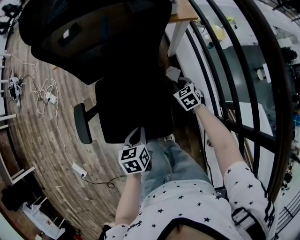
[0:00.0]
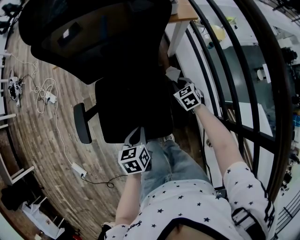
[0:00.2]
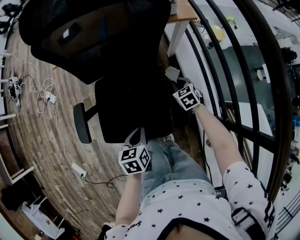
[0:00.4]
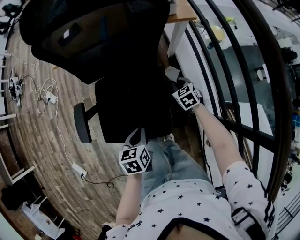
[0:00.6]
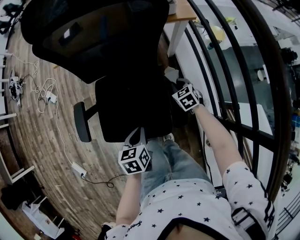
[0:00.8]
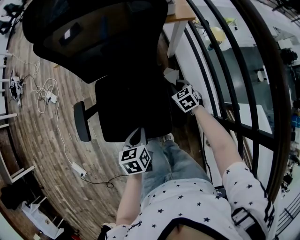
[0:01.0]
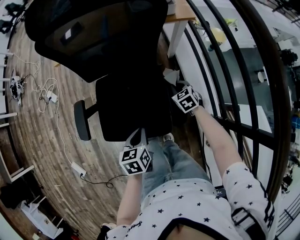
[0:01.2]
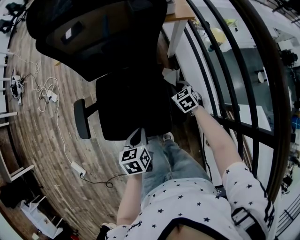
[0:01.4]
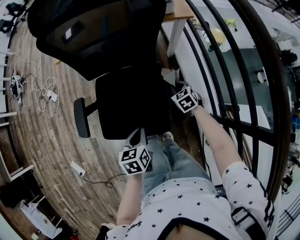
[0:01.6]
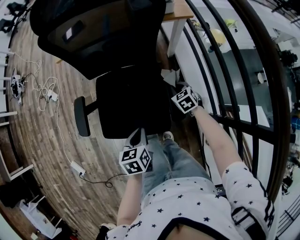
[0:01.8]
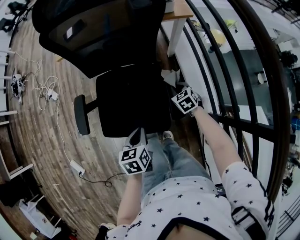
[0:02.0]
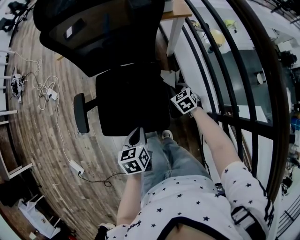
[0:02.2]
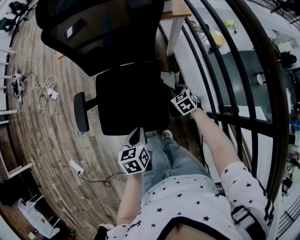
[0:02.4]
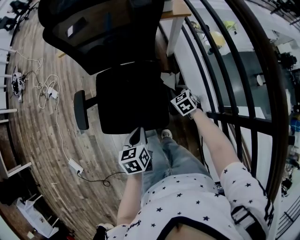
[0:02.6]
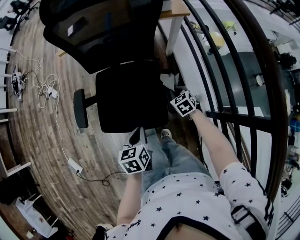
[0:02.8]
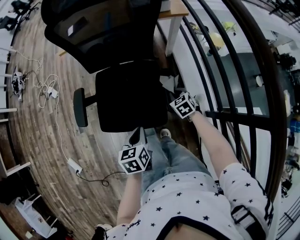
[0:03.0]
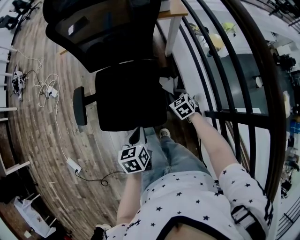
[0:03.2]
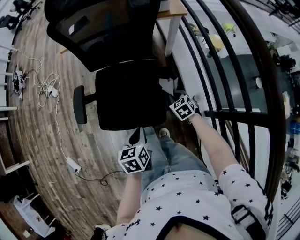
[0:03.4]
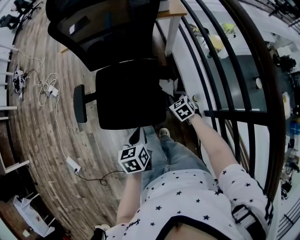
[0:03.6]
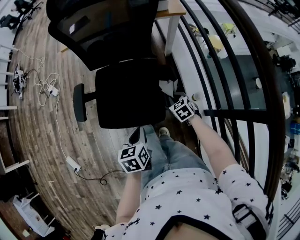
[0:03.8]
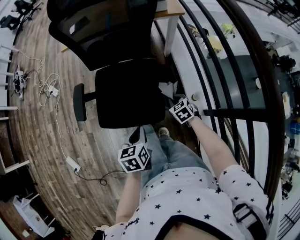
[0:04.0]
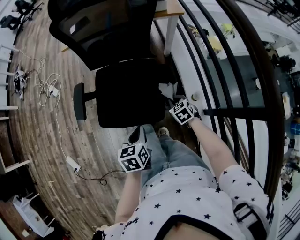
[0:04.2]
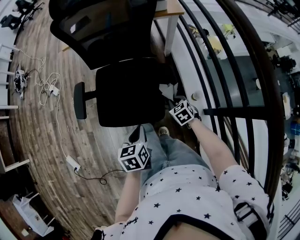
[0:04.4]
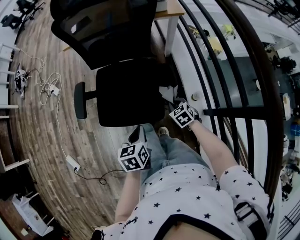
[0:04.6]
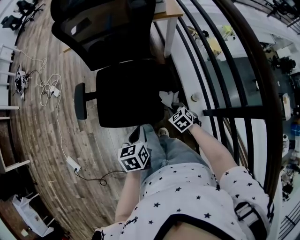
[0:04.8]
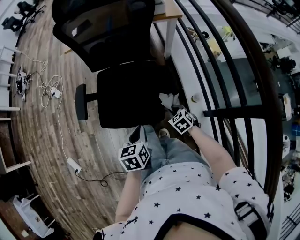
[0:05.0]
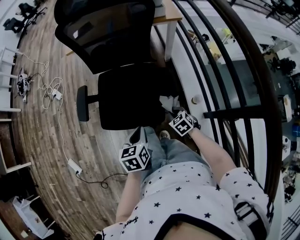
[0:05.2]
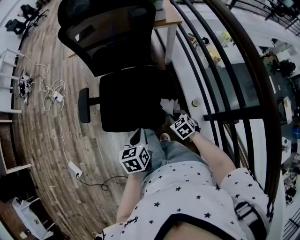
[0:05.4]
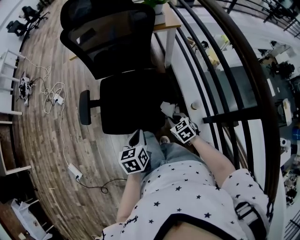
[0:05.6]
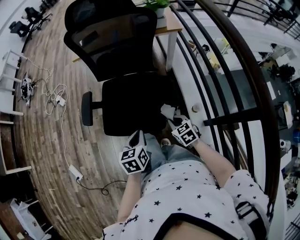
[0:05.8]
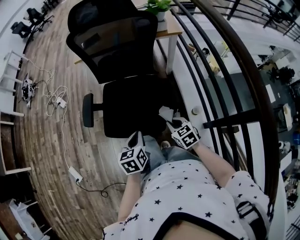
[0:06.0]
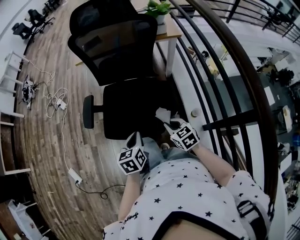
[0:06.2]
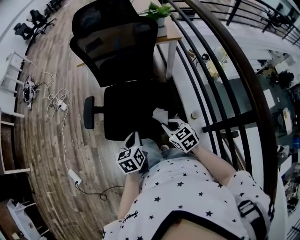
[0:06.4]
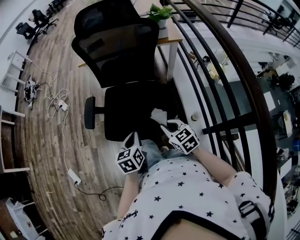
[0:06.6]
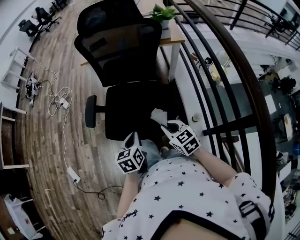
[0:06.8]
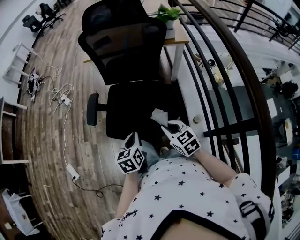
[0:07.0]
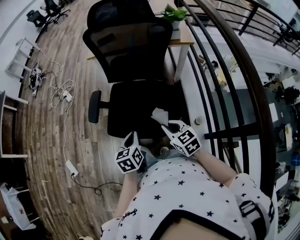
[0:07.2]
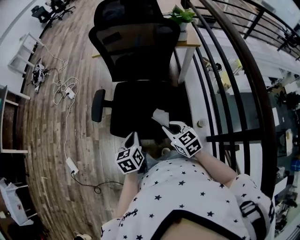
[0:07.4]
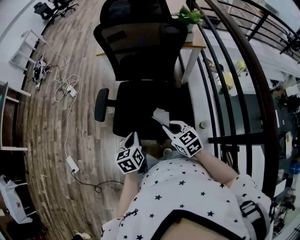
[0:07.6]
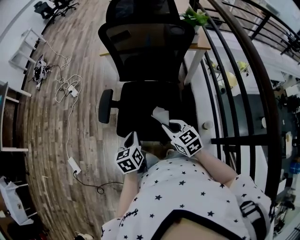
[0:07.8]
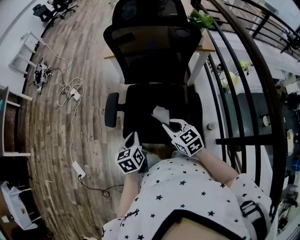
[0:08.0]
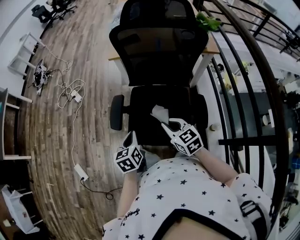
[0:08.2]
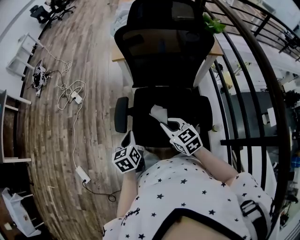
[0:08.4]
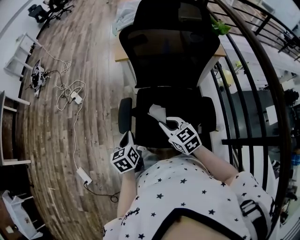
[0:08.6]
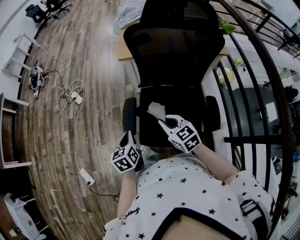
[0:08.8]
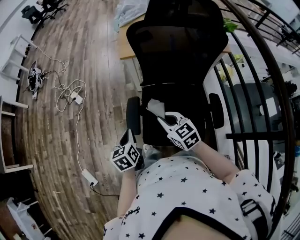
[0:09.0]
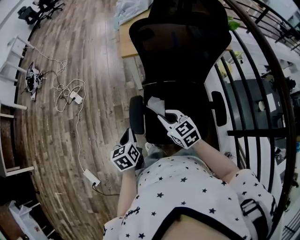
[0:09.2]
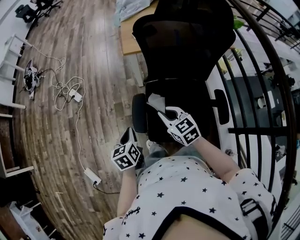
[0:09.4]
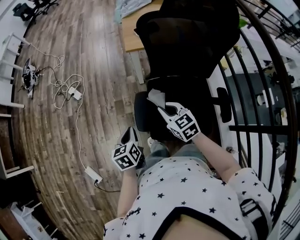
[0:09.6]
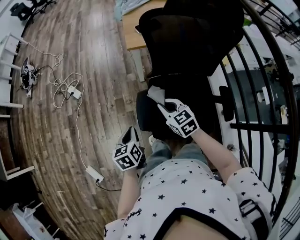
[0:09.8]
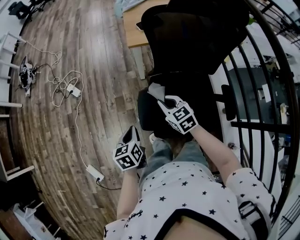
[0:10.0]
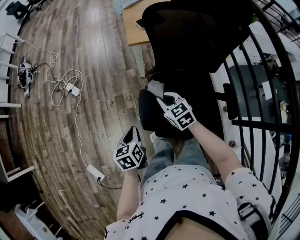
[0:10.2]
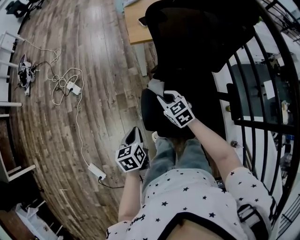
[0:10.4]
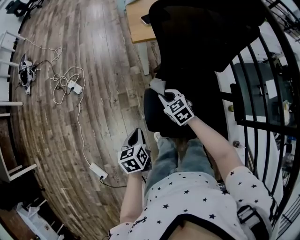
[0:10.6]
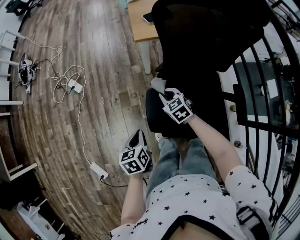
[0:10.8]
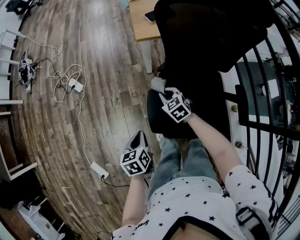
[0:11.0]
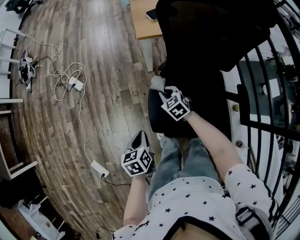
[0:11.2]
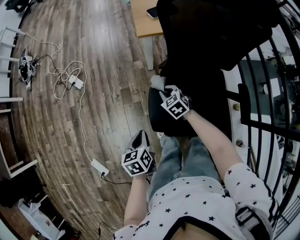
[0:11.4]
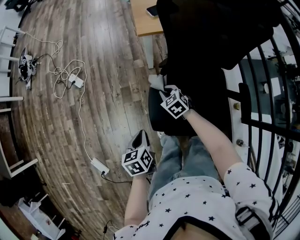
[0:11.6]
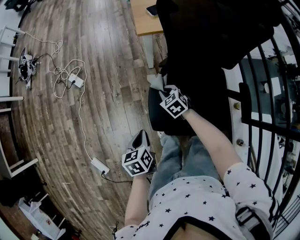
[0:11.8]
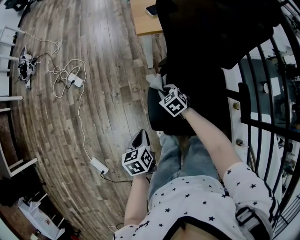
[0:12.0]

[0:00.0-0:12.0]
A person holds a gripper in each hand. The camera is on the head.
0.0 to 1.6 s: There are only small adjustments of the grippers.
1.6 to 3.0 s: The two grippers go roughly 5 cm backward.
3.0 to 4.4 s: The right gripper goes some 10 cm backward.
4.4 to 6.0 s: The right gripper heads upward and backward, covering about 10 cm.
6.0 to 7.6 s: The left gripper moves to the left, approximately 5 cm. Meanwhile the right gripper heads upward and to the left, covering approximately 10 cm.
7.6 to 9.0 s: The right gripper travels forward and to the left by approximately 30 cm. The left gripper moves to the left and forward, approximately 30 cm.
9.0 to 10.4 s: The left gripper travels downward and to the left by some 10 cm. The right gripper shifts approximately 20 cm forward, downward and to the left.
10.4 to 12.0 s: The right gripper is displaced downward by about 10 cm.

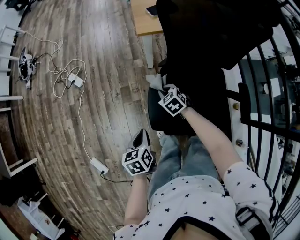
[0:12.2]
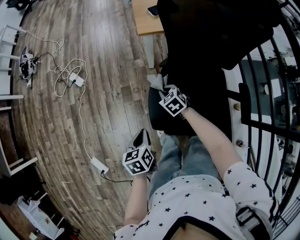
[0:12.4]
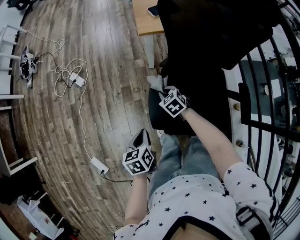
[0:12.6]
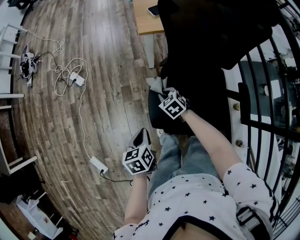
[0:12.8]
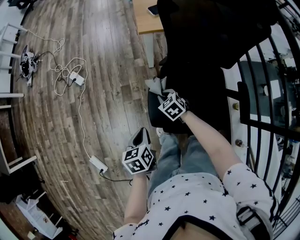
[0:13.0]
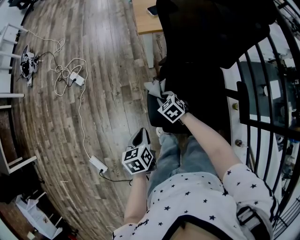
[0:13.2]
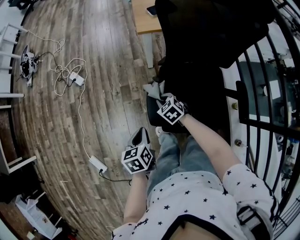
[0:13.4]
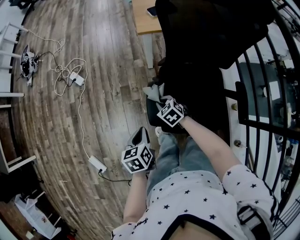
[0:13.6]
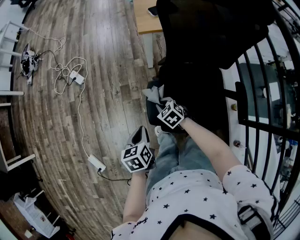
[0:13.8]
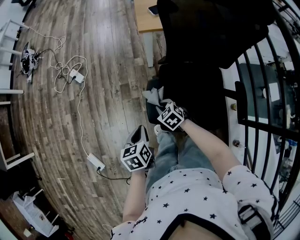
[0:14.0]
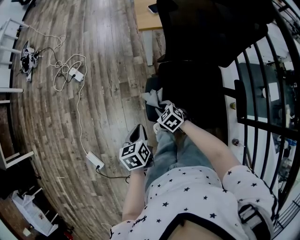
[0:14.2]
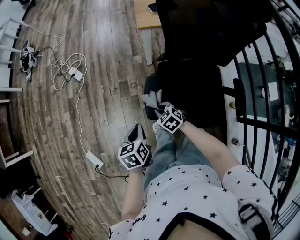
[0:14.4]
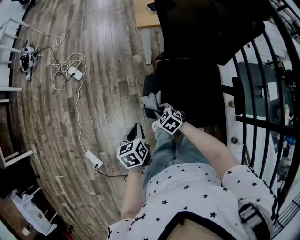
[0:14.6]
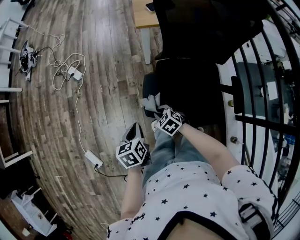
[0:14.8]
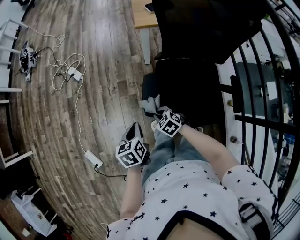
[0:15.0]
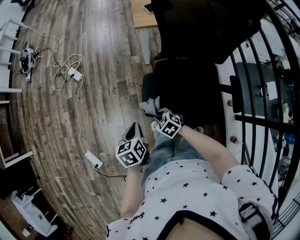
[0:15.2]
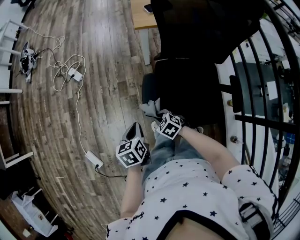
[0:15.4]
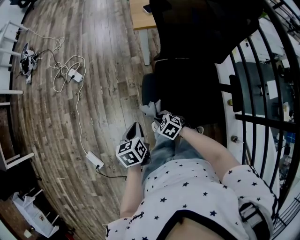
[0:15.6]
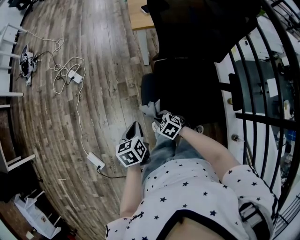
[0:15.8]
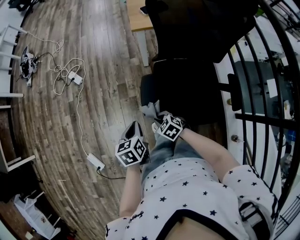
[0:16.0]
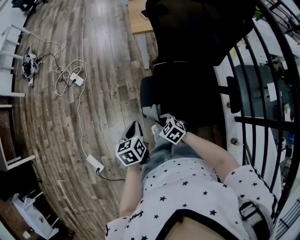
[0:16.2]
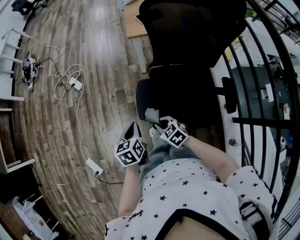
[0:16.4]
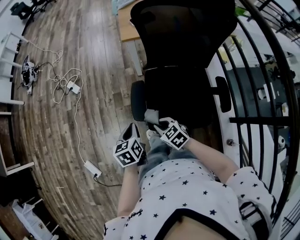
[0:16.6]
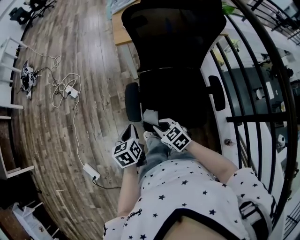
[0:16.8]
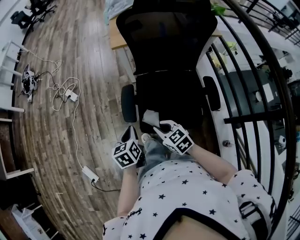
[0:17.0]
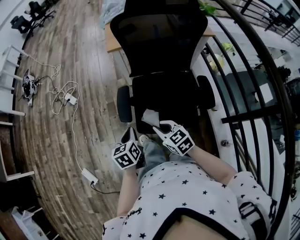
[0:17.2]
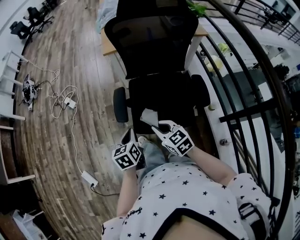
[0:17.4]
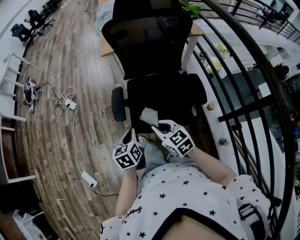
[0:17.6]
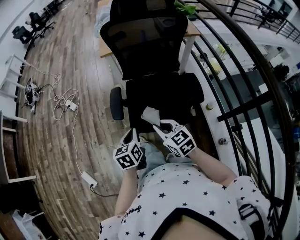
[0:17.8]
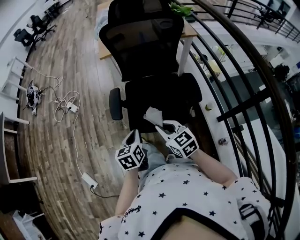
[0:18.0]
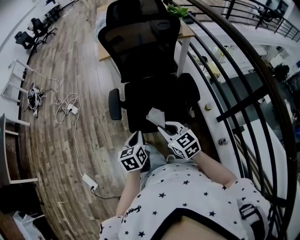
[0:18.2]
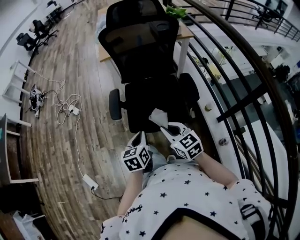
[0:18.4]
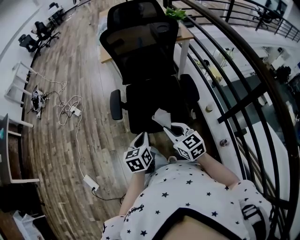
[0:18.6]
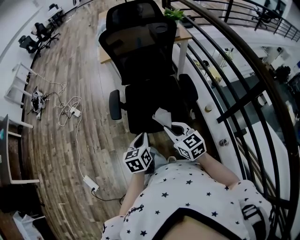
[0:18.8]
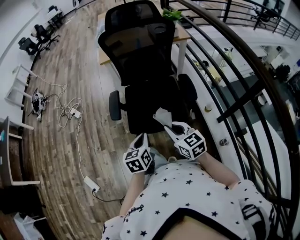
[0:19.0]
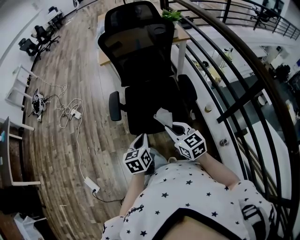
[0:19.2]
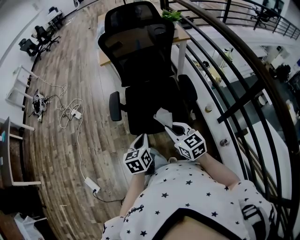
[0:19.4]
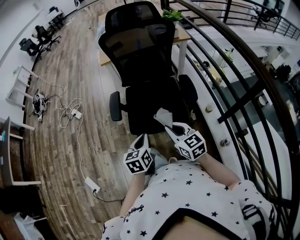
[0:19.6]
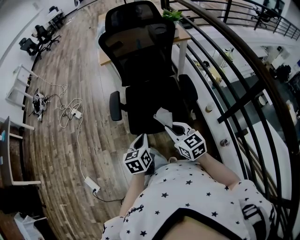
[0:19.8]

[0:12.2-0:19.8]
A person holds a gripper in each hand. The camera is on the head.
12.2 to 13.8 s: The right gripper moves backward, some 10 cm.
13.8 to 15.2 s: The right gripper shifts some 10 cm backward.
15.2 to 16.8 s: The left gripper heads to the right, covering about 5 cm; the right gripper moves upward, backward and to the right, some 15 cm, and swivels some 20 degrees.
16.8 to 18.2 s: The left gripper shifts roughly 20 cm backward and to the right, while the right gripper shifts some 20 cm backward, to the right and upward, and swivels roughly 20 degrees.
18.2 to 19.8 s: The right gripper shifts by about 5 cm, while the left gripper shifts by some 5 cm.

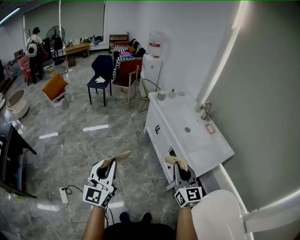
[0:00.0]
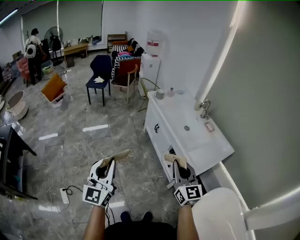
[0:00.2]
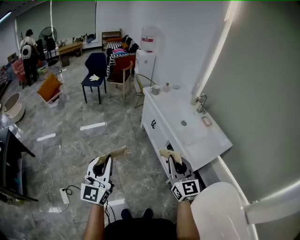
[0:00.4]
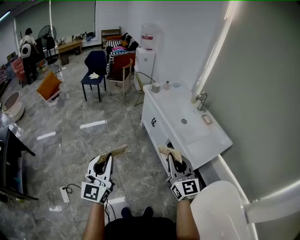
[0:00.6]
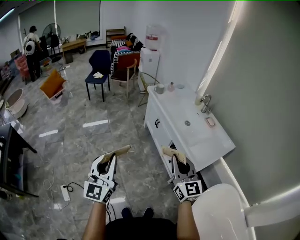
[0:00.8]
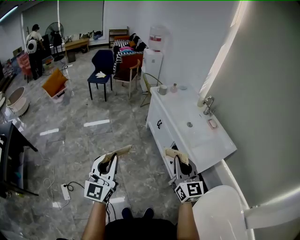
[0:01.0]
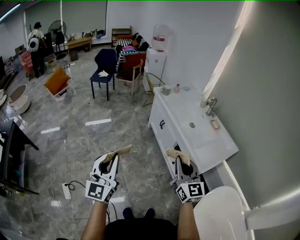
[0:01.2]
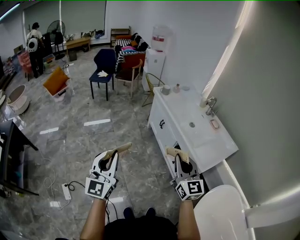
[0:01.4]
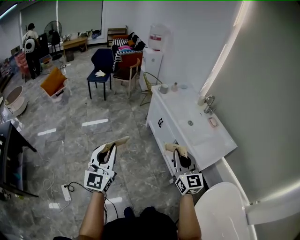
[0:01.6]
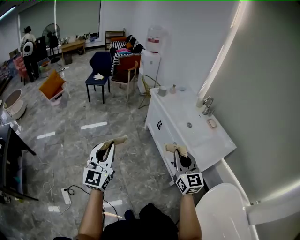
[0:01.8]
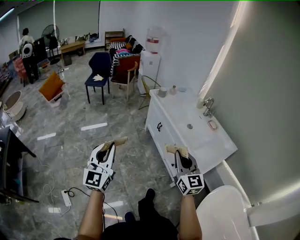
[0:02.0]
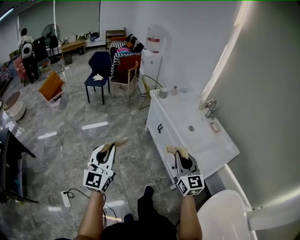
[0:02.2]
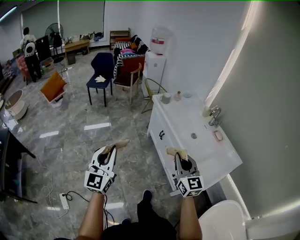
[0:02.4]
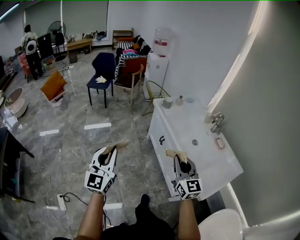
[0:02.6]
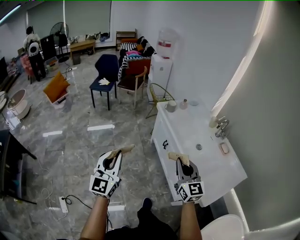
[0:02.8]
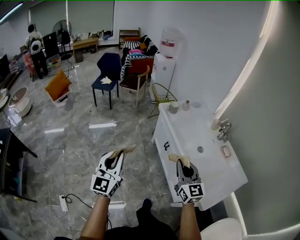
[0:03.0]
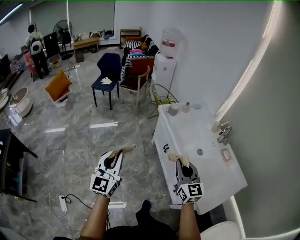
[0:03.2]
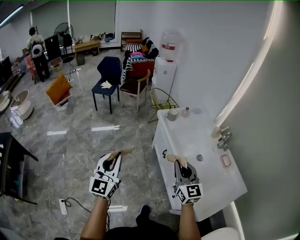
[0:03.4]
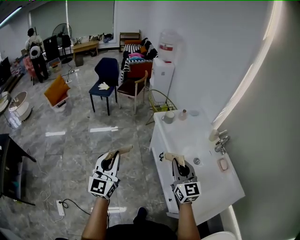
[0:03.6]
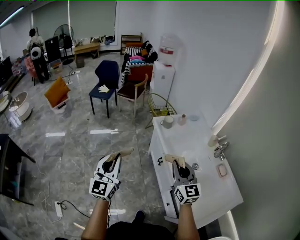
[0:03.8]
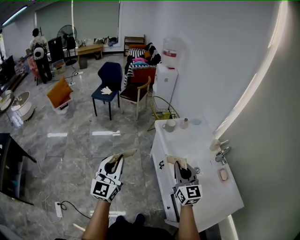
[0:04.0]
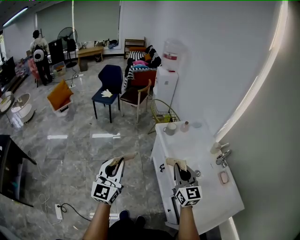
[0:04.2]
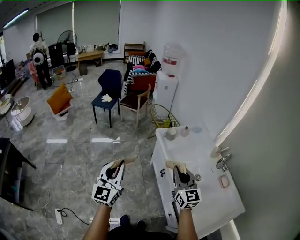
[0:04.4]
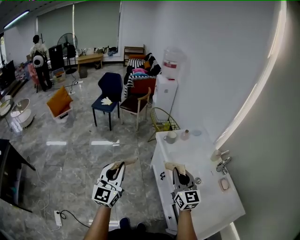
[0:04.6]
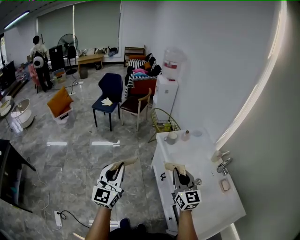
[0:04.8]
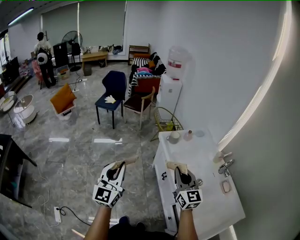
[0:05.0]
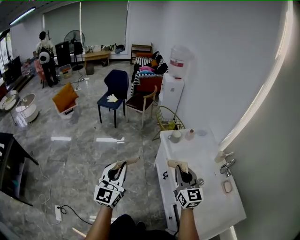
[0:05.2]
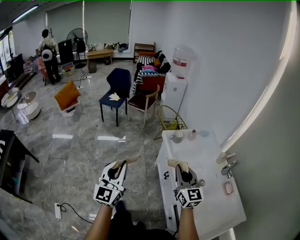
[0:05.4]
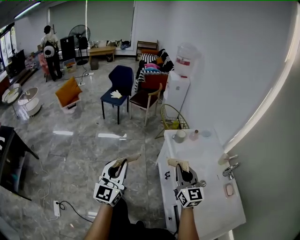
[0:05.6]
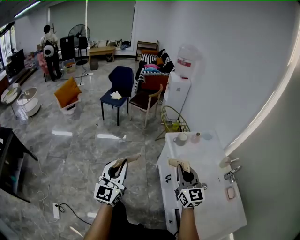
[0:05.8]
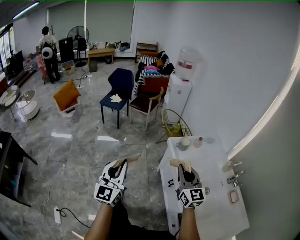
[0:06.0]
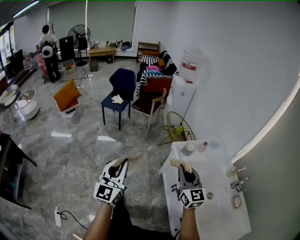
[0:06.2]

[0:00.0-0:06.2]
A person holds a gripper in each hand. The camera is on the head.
0.0 to 1.6 s: The grippers both shift to the left by some 5 cm.
1.6 to 3.2 s: Both grippers move forward, roughly 30 cm.
3.2 to 4.6 s: The two grippers go roughly 15 cm forward.
4.6 to 6.2 s: Both grippers travel together forward and to the left, approximately 15 cm.
